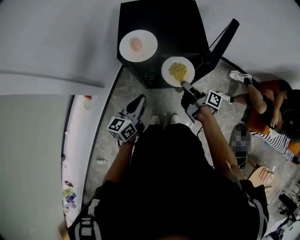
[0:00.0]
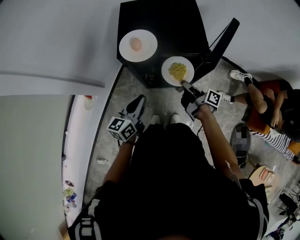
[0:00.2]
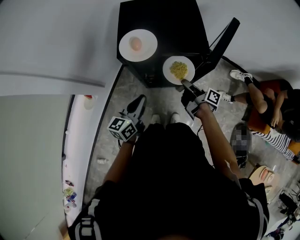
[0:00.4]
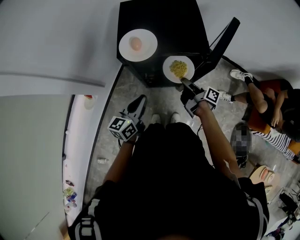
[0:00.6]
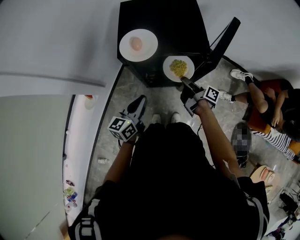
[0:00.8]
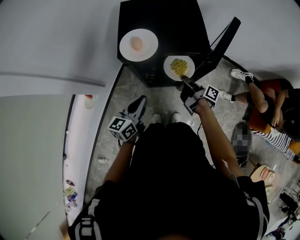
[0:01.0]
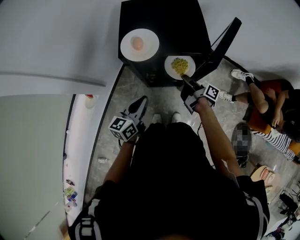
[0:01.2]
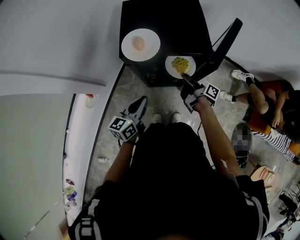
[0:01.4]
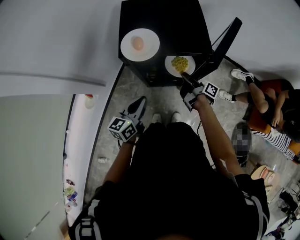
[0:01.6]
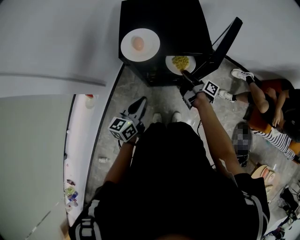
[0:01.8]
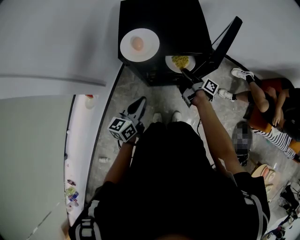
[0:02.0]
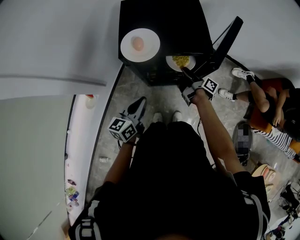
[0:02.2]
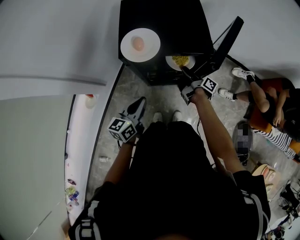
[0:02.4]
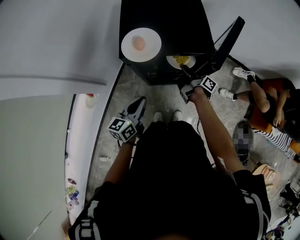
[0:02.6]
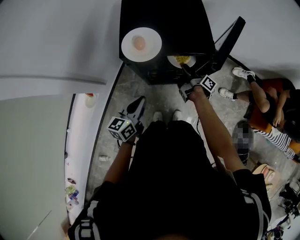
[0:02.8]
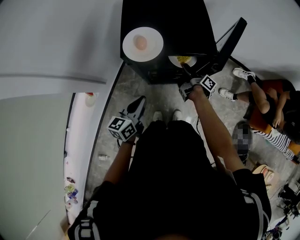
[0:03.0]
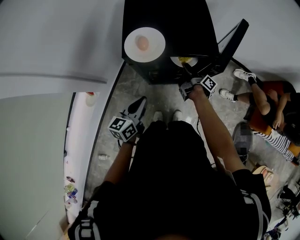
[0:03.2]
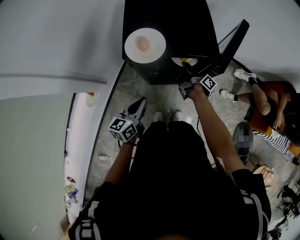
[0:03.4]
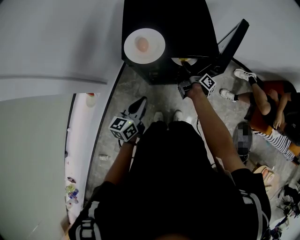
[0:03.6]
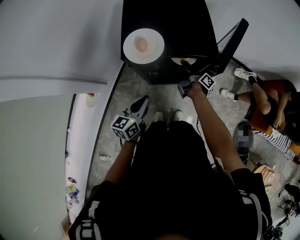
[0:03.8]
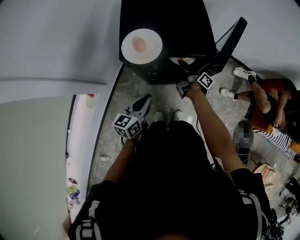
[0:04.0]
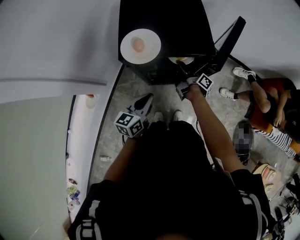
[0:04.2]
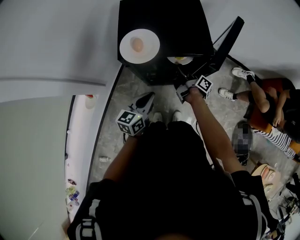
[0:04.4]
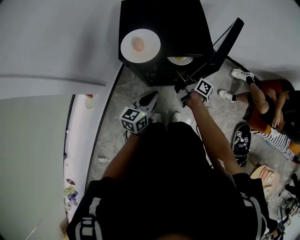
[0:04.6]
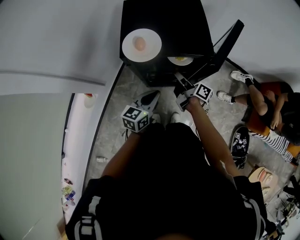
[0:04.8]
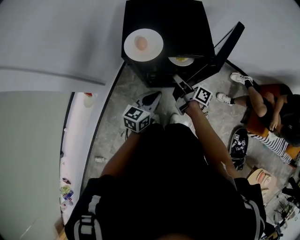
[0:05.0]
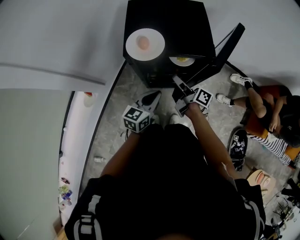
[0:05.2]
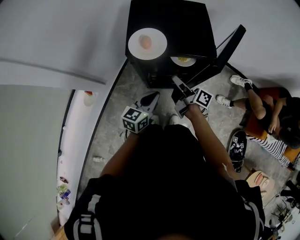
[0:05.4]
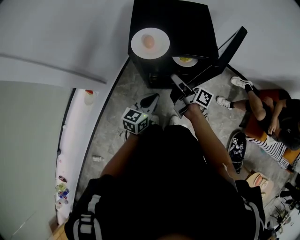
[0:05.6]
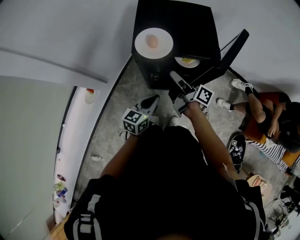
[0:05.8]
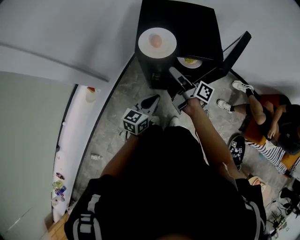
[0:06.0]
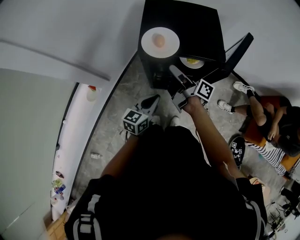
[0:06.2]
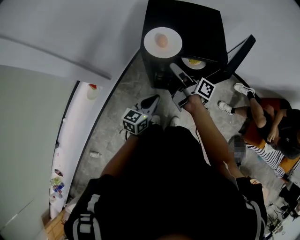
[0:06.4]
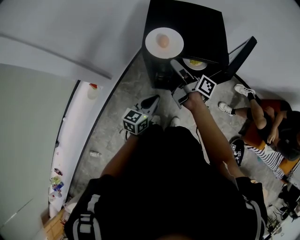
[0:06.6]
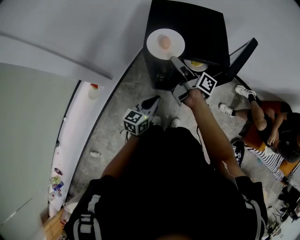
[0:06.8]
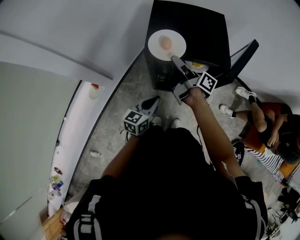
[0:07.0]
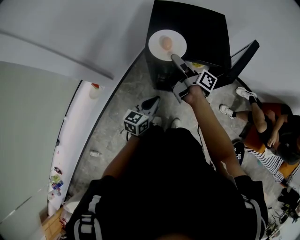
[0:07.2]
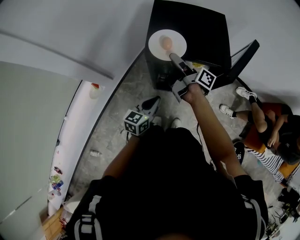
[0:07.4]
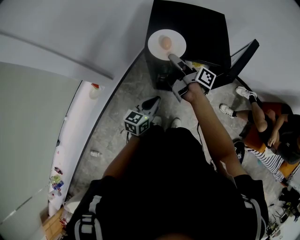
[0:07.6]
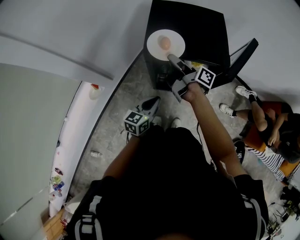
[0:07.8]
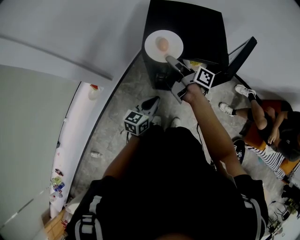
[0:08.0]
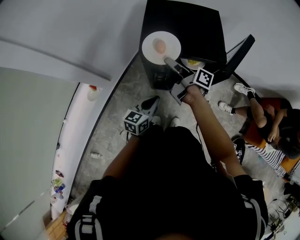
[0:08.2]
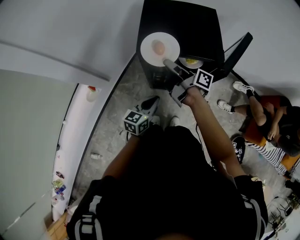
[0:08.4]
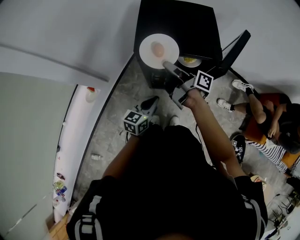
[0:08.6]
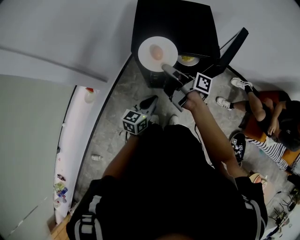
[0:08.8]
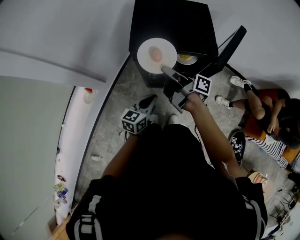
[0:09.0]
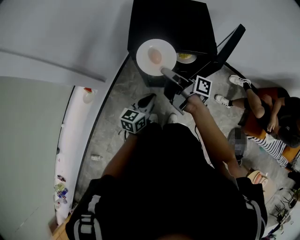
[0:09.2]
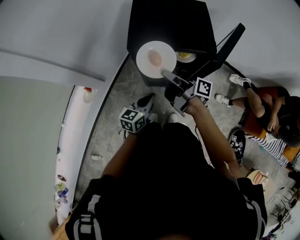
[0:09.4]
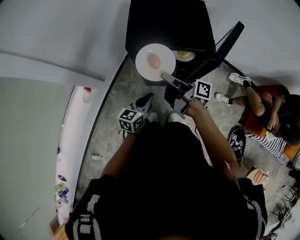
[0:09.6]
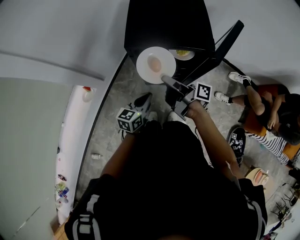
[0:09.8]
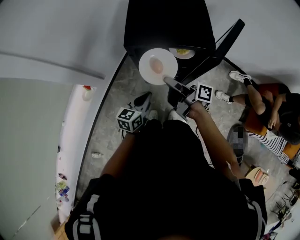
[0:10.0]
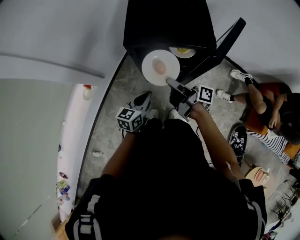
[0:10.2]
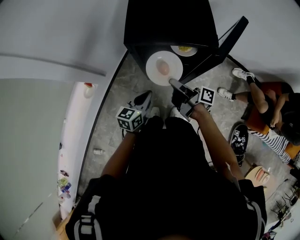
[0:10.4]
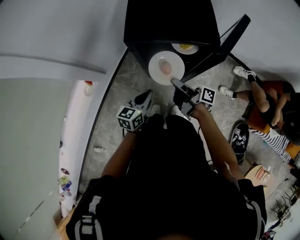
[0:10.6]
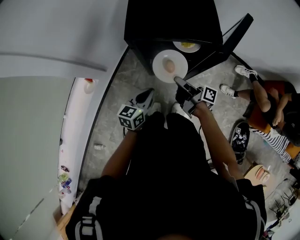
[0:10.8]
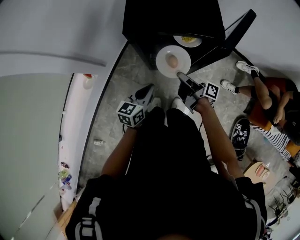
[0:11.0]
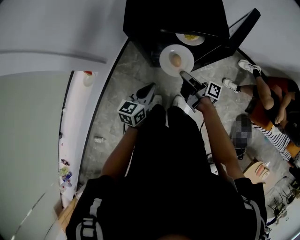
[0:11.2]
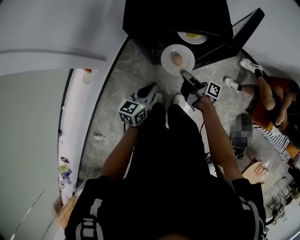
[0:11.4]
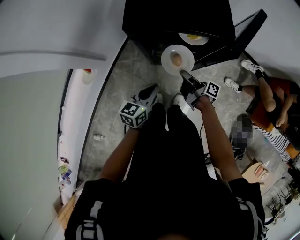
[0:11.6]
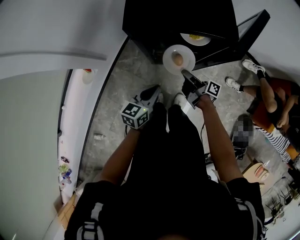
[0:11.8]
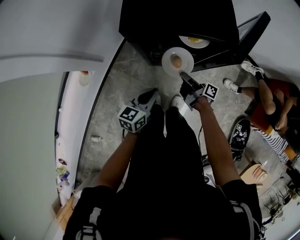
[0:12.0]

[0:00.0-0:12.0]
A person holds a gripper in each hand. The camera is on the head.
0:03.0 to 0:04.4: The left gripper changes place by approximately 5 cm.

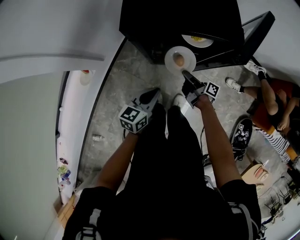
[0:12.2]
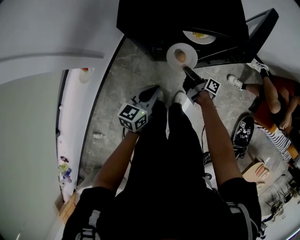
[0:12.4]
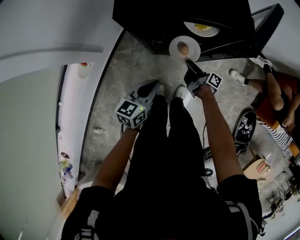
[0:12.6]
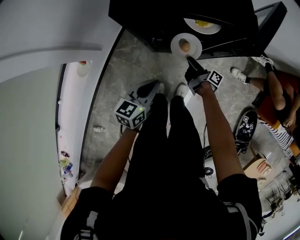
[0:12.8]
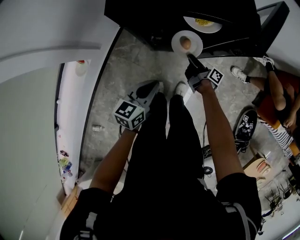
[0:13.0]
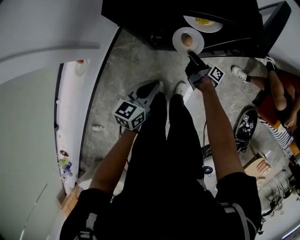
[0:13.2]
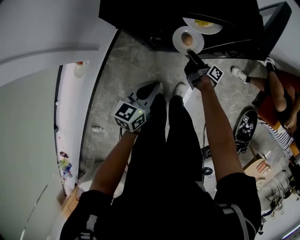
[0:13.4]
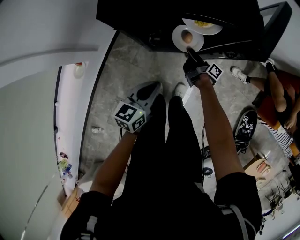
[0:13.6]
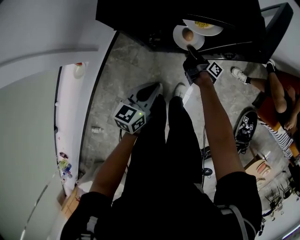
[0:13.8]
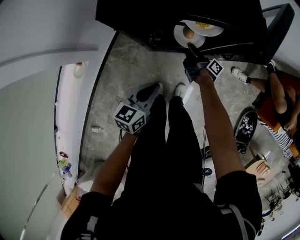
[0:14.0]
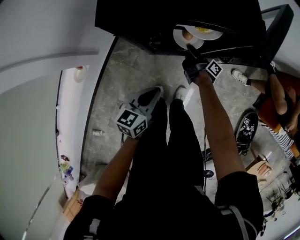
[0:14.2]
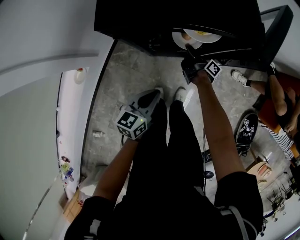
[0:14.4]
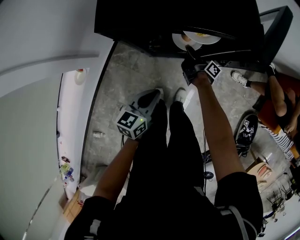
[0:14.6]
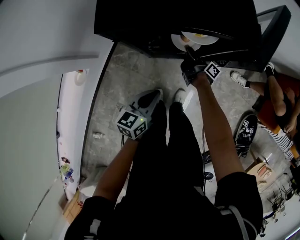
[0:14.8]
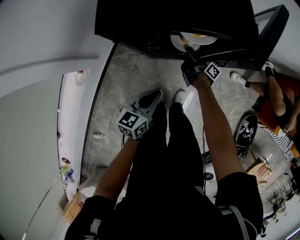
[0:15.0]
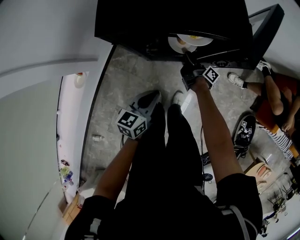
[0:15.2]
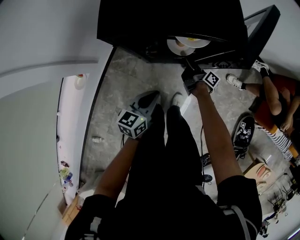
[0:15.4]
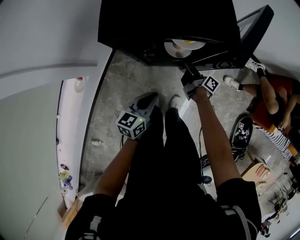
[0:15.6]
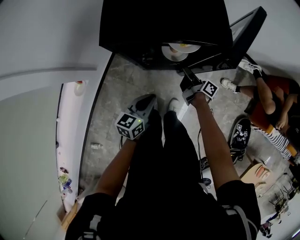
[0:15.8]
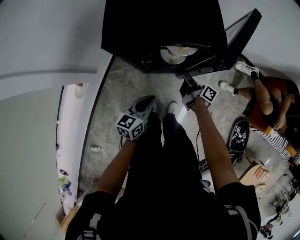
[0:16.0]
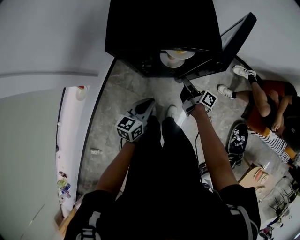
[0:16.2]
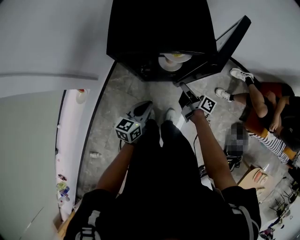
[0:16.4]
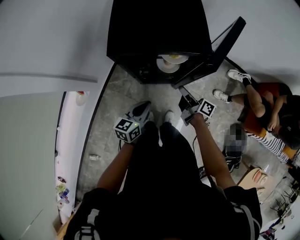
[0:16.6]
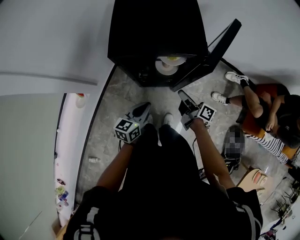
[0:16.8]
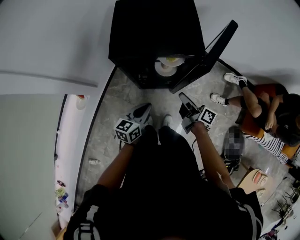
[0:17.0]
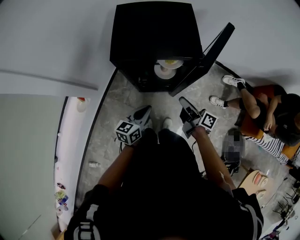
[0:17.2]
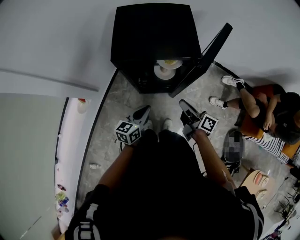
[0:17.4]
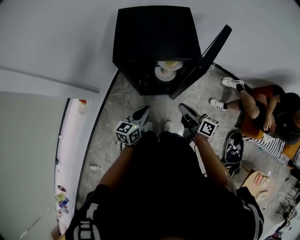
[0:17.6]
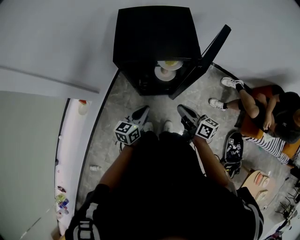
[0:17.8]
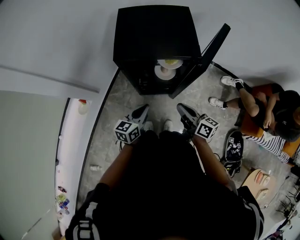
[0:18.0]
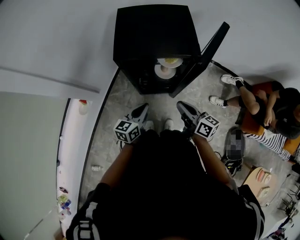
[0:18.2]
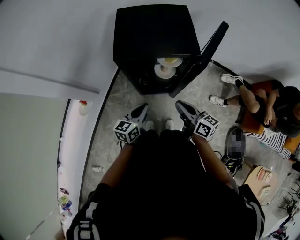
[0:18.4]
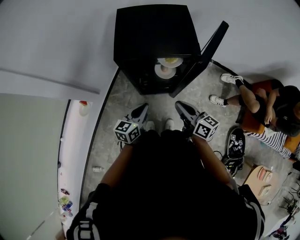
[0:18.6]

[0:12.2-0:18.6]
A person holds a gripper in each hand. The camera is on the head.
0:15.4 to 0:17.0: The left gripper goes some 10 cm upward.

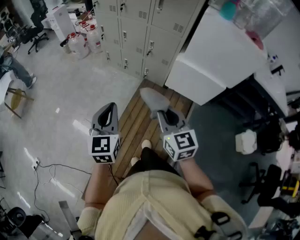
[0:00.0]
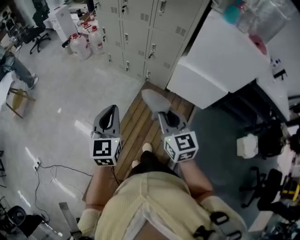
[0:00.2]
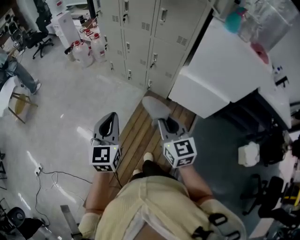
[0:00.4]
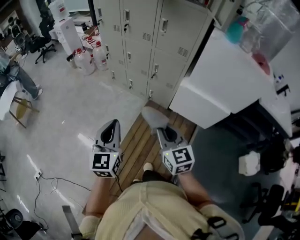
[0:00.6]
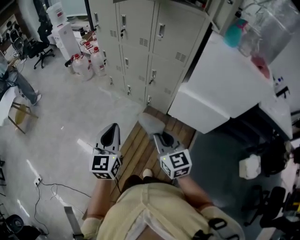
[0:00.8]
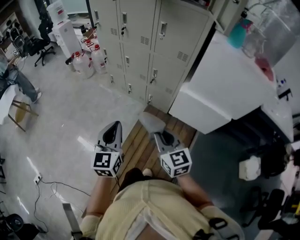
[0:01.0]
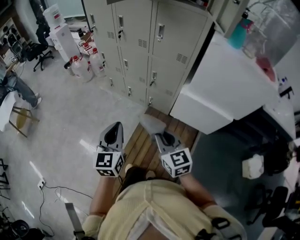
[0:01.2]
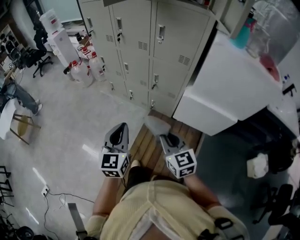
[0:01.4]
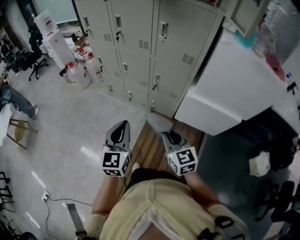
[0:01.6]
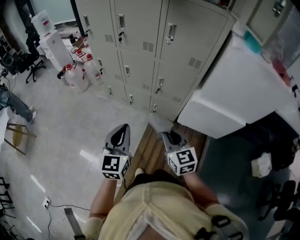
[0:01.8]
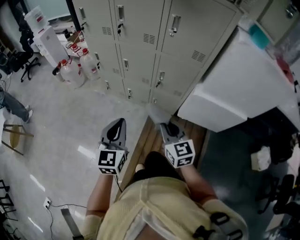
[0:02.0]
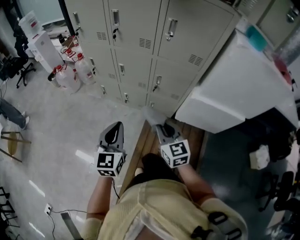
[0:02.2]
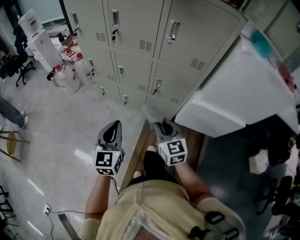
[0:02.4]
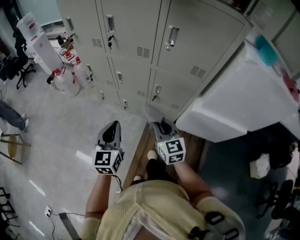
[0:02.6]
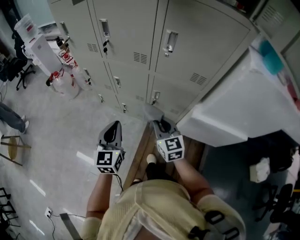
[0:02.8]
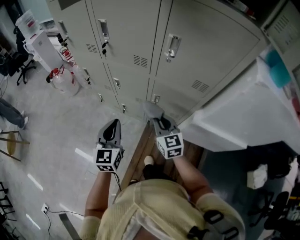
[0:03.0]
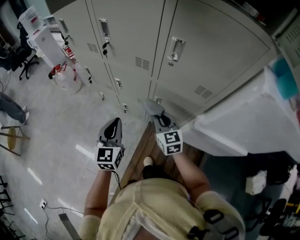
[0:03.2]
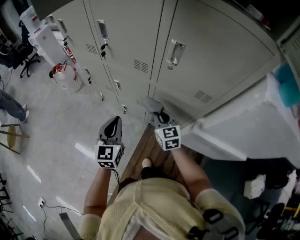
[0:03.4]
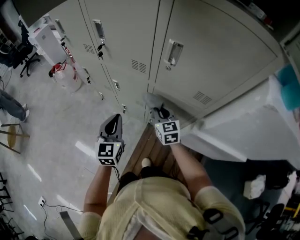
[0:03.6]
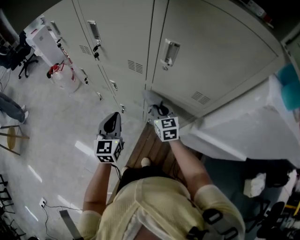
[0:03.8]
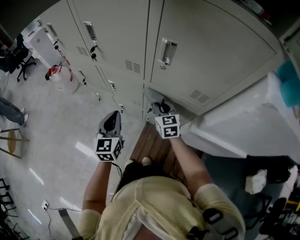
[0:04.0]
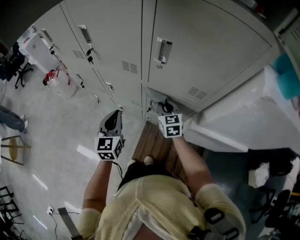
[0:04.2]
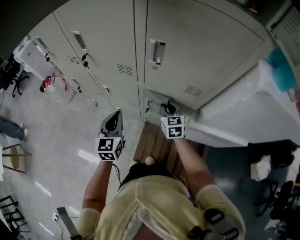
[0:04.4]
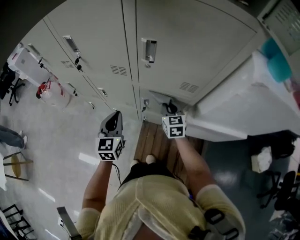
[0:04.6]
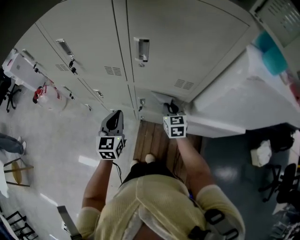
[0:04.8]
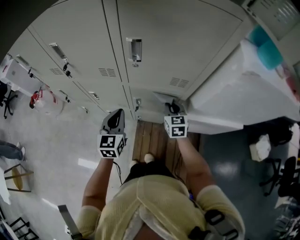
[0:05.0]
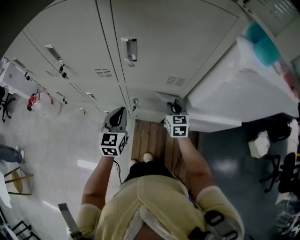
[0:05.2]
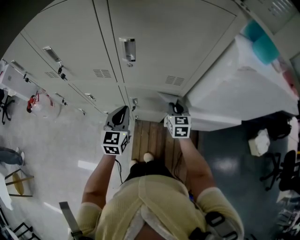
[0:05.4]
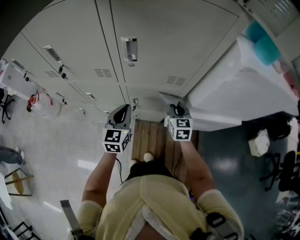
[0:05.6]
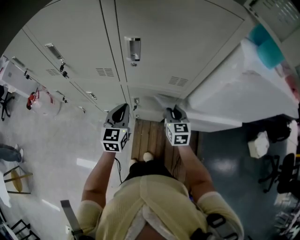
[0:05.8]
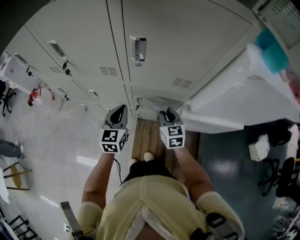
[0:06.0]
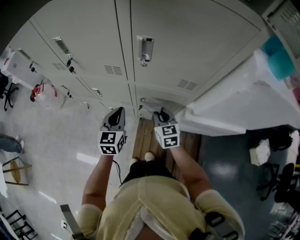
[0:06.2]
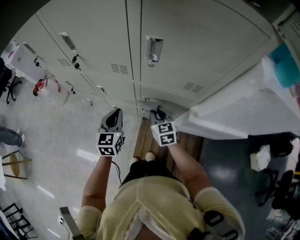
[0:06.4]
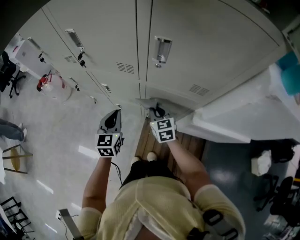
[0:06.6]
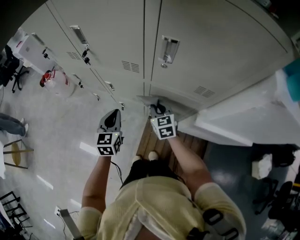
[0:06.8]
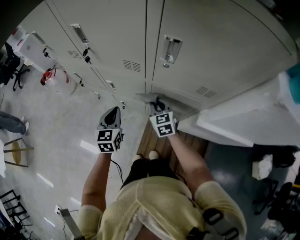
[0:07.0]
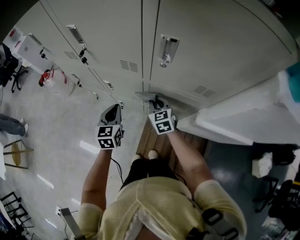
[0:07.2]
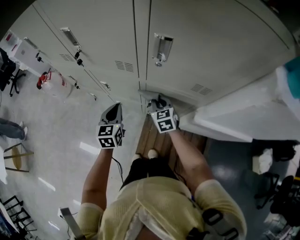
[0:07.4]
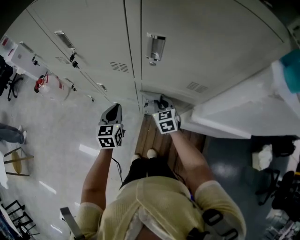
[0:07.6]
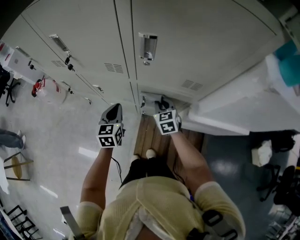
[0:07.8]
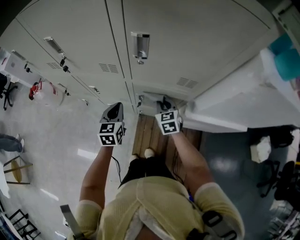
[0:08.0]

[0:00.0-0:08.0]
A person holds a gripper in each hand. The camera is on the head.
0:00.0 to 0:01.6: The right gripper is displaced forward and downward by about 25 cm. The left gripper shifts roughly 25 cm forward.
0:01.6 to 0:03.2: The two grippers go about 35 cm forward.
0:03.2 to 0:04.8: The right gripper shifts some 15 cm to the right and forward, and changes its angle by roughly 30 degrees, while the left gripper is displaced forward and to the right by some 10 cm.
0:04.8 to 0:06.4: The right gripper goes approximately 10 cm to the left; the left gripper reaches about 5 cm to the right, then returns.
0:06.4 to 0:08.0: The left gripper ends up approximately 5 cm from where it was. The right gripper goes some 5 cm to the right.
